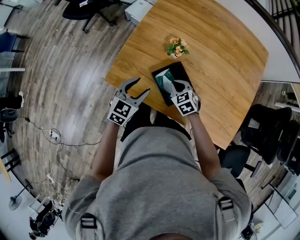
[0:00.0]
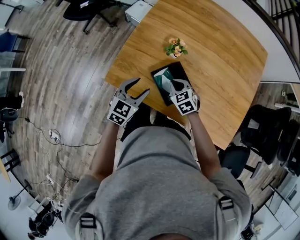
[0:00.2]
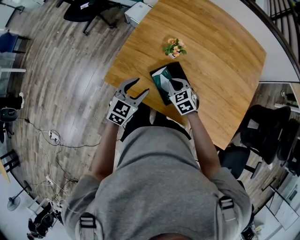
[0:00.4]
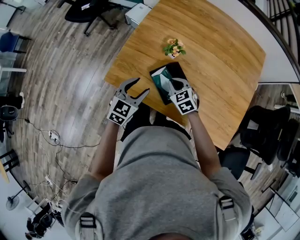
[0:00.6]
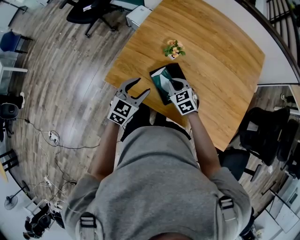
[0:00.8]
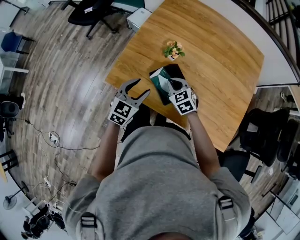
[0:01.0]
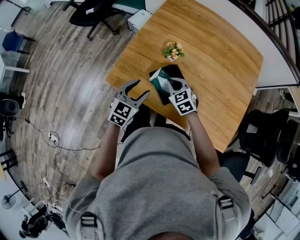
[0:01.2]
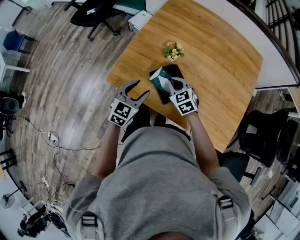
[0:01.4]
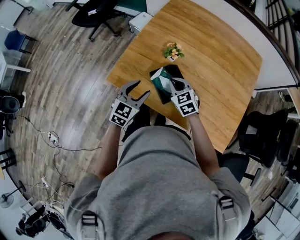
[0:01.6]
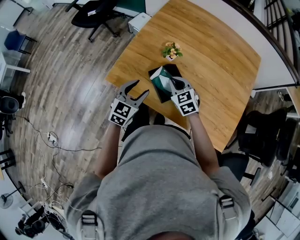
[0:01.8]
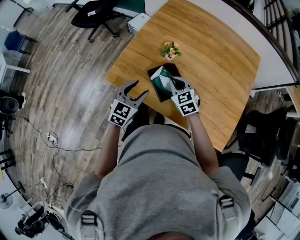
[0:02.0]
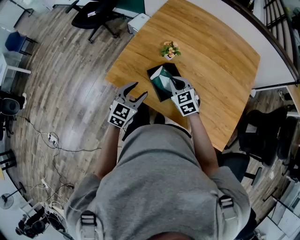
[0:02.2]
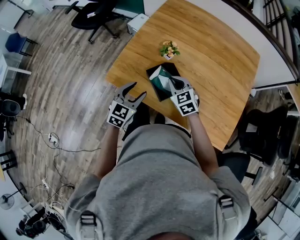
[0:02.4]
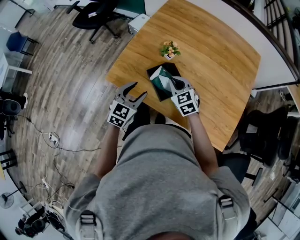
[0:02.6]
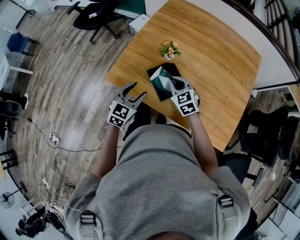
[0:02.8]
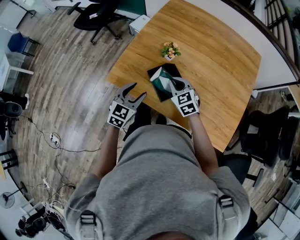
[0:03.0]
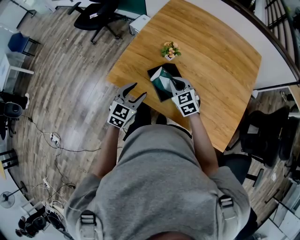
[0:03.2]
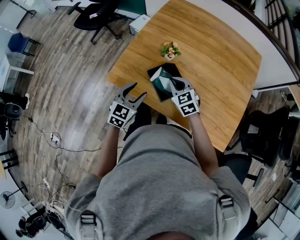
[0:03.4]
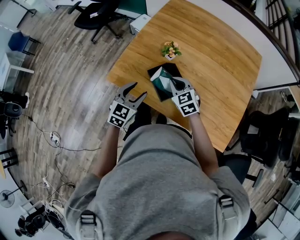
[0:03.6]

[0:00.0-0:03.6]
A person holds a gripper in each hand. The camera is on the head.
0:00.0 to 0:01.8: The right gripper is displaced upward by roughly 10 cm. The left gripper goes roughly 5 cm backward.
0:01.8 to 0:03.6: The grippers stay close to where they were, moving slightly.

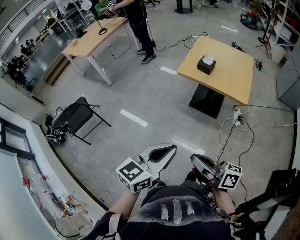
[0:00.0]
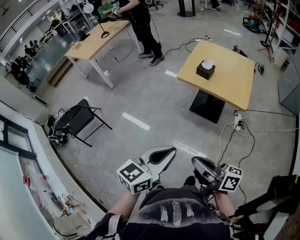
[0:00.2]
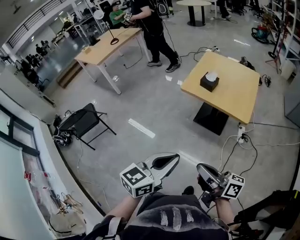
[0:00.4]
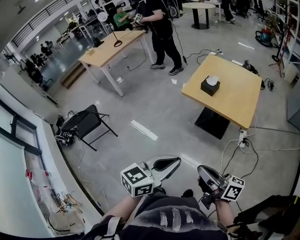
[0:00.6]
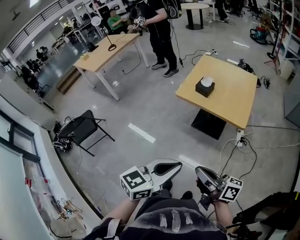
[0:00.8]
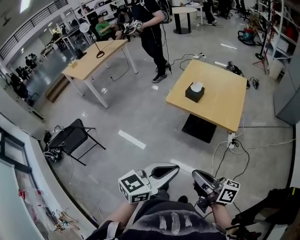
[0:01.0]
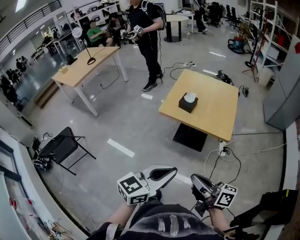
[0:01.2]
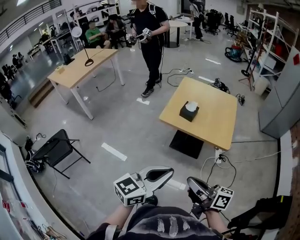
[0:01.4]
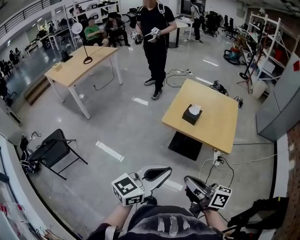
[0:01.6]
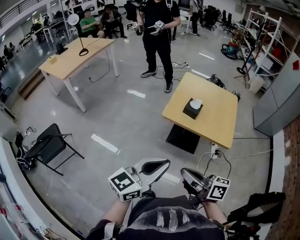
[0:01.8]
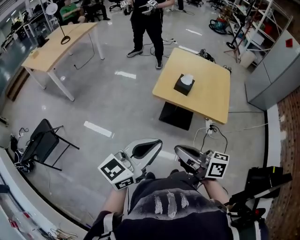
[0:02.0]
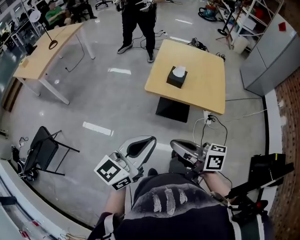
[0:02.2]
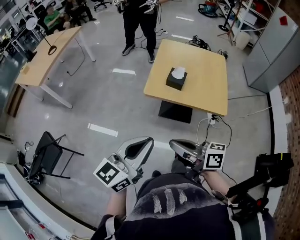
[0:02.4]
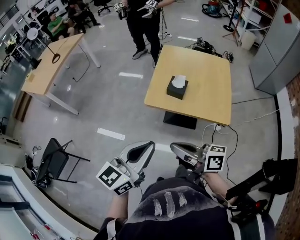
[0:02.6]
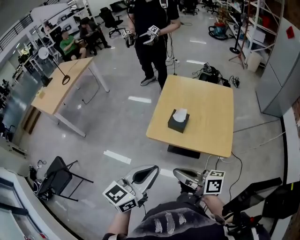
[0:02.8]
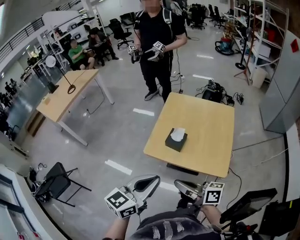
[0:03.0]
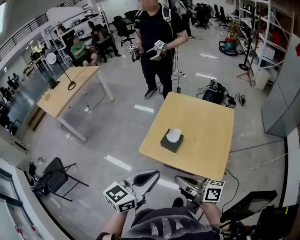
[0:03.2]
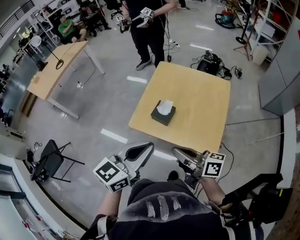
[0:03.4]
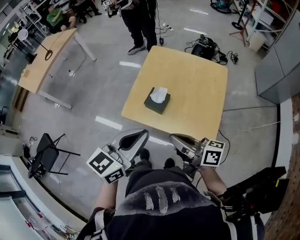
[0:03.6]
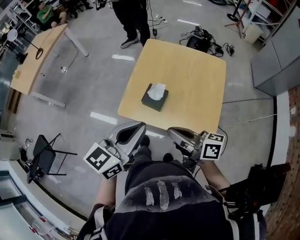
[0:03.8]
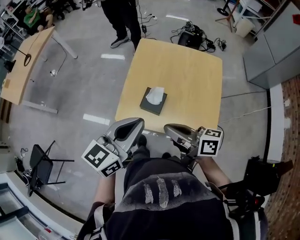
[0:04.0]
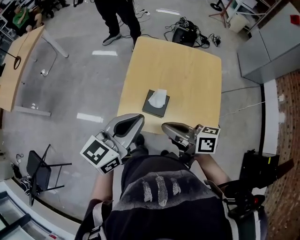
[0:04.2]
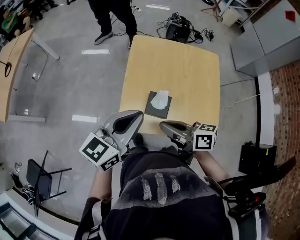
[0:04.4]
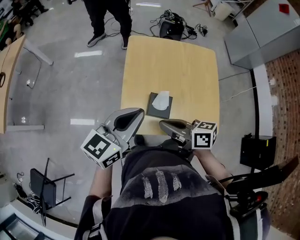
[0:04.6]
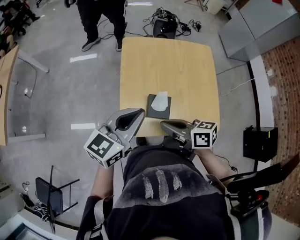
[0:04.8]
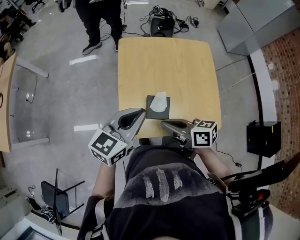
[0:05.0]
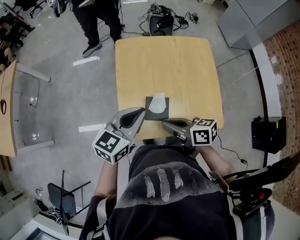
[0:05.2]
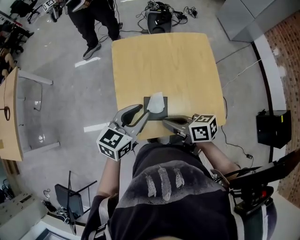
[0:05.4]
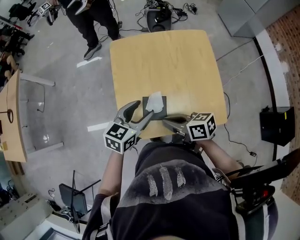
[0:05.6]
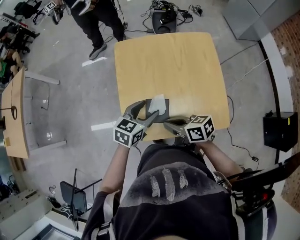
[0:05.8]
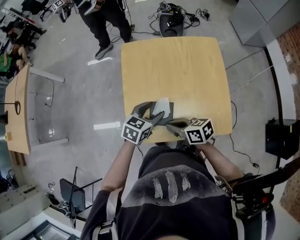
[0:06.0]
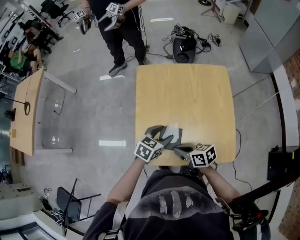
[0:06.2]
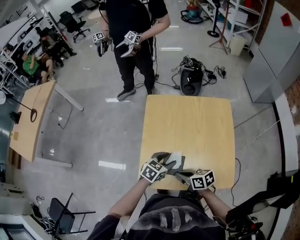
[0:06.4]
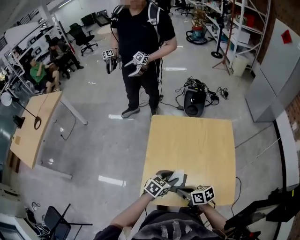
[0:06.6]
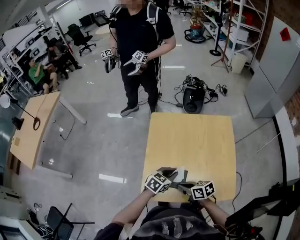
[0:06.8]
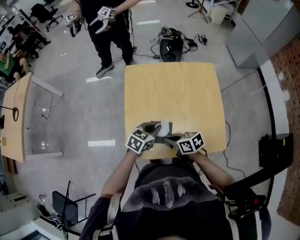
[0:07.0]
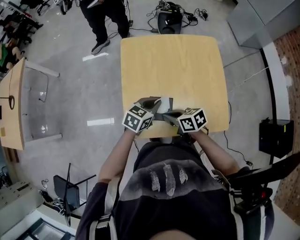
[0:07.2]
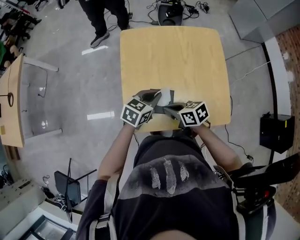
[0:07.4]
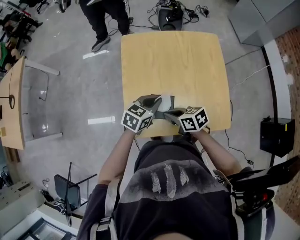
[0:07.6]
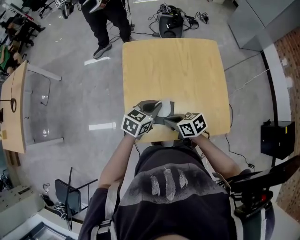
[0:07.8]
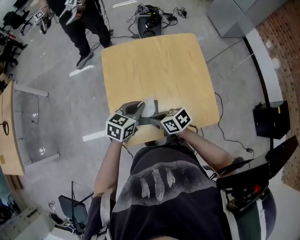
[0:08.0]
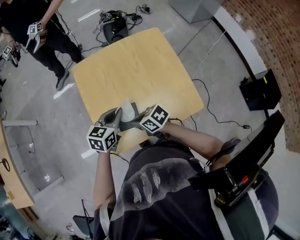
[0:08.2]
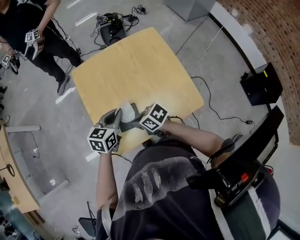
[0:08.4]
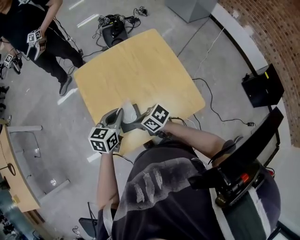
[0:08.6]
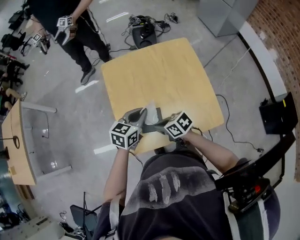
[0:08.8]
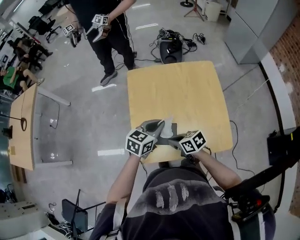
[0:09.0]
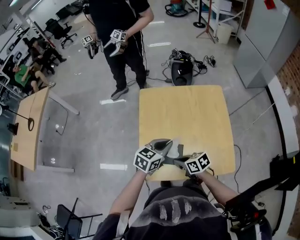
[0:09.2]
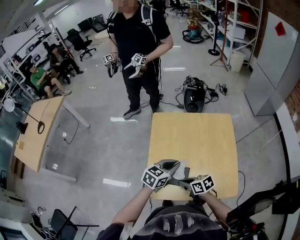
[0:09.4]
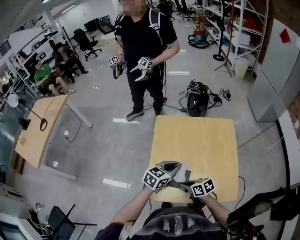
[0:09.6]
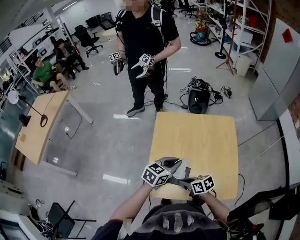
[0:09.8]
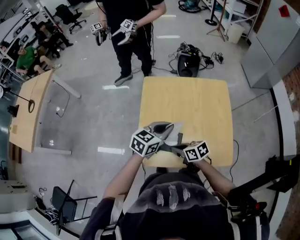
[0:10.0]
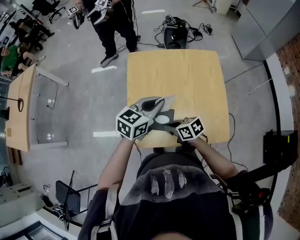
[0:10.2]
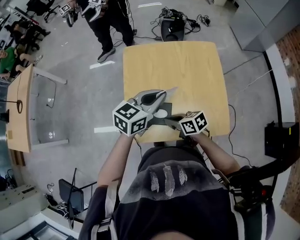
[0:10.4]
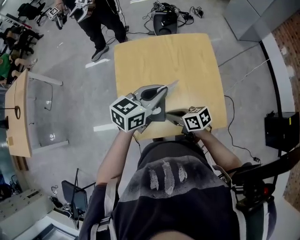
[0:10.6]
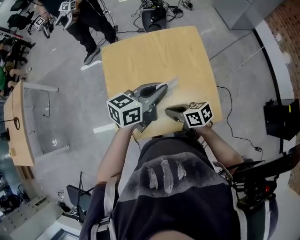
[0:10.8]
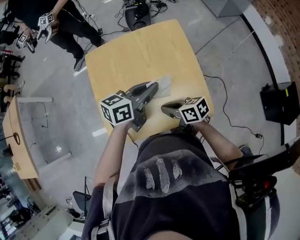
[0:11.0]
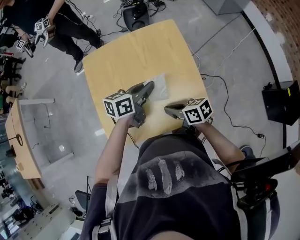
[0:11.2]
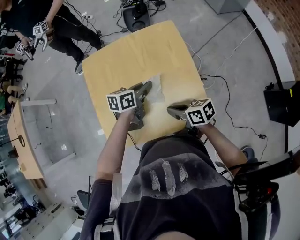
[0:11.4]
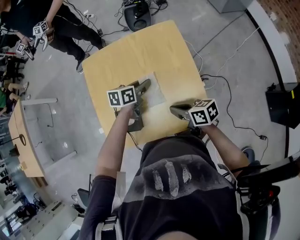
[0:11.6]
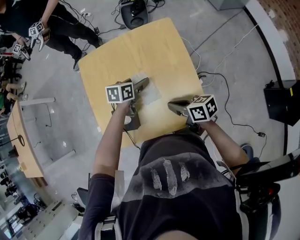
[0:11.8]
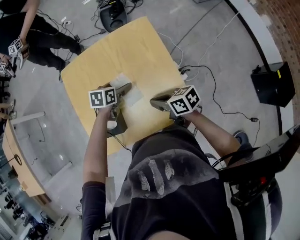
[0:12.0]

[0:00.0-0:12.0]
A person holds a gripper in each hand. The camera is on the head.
0:00.0 to 0:01.6: Both grippers travel together forward, some 15 cm.
0:01.6 to 0:03.0: Both grippers move forward and to the right, roughly 20 cm.
0:03.0 to 0:04.4: The grippers both shift forward by about 25 cm. The right gripper turns by roughly 20 degrees.
0:04.4 to 0:06.0: The left gripper is displaced downward, forward and to the right by roughly 25 cm, tilts its fingers roughly 30 degrees downward, and opens its fingers. Meanwhile the right gripper moves downward, approximately 15 cm.
0:06.0 to 0:07.6: The left gripper closes.
0:07.6 to 0:09.0: The left gripper goes about 5 cm upward.
0:09.0 to 0:10.4: The left gripper heads upward, covering approximately 10 cm.
0:10.4 to 0:12.0: The left gripper moves downward, some 20 cm, angles its fingers downward, by about 30 degrees, and opens up, while the right gripper moves roughly 20 cm.

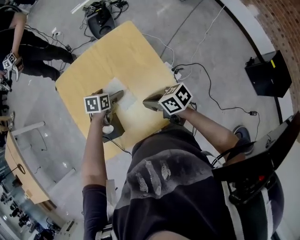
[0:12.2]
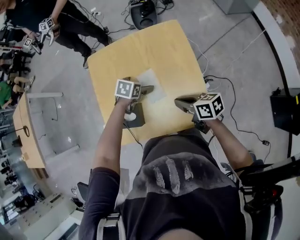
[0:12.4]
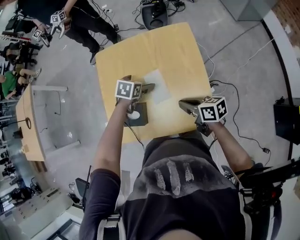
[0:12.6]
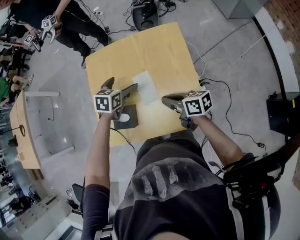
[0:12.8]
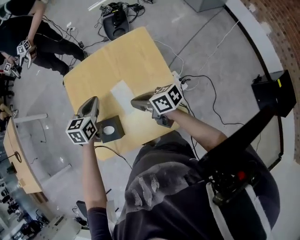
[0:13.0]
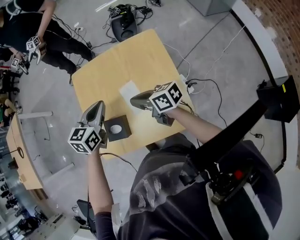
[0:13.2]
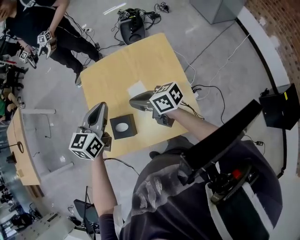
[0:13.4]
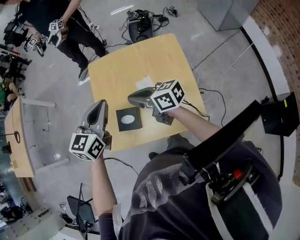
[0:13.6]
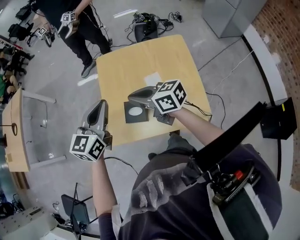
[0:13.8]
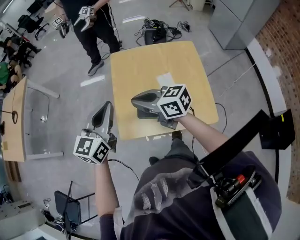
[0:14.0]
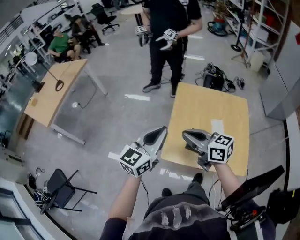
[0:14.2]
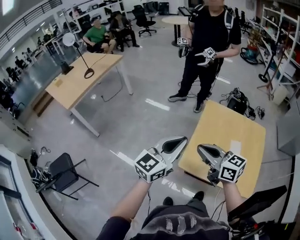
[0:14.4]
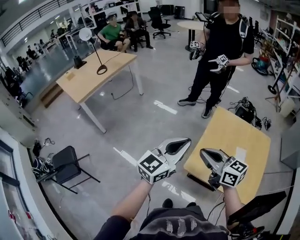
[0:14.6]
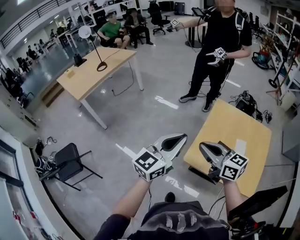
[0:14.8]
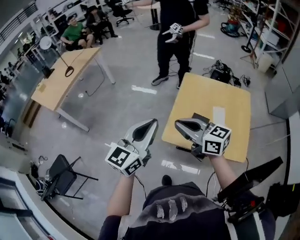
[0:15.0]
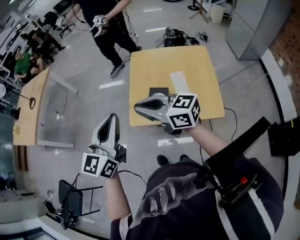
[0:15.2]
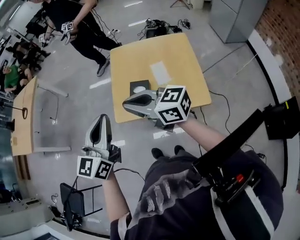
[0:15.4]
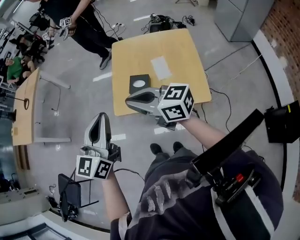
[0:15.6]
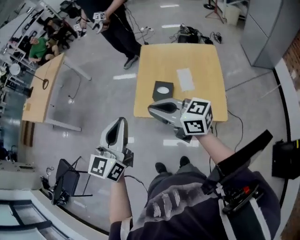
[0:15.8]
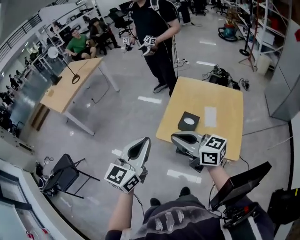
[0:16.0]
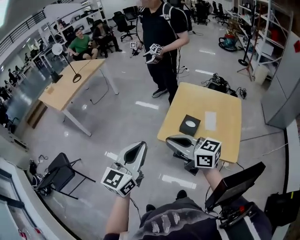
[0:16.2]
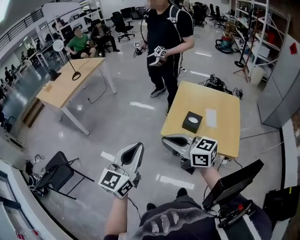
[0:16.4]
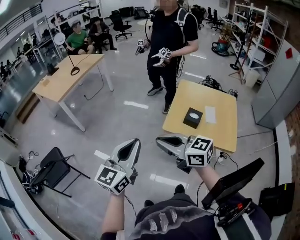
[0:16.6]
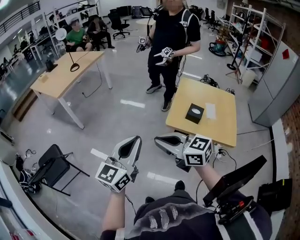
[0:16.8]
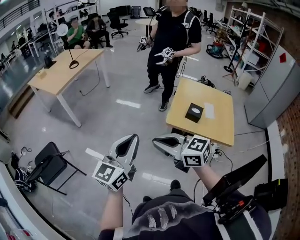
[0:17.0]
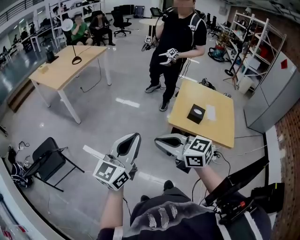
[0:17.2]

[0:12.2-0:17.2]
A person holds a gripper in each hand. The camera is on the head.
0:12.2 to 0:13.8: The right gripper is displaced to the left and upward by some 25 cm, and turns by roughly 30 degrees. The left gripper shifts approximately 35 cm upward and to the left, points its fingers roughly 50 degrees further upward, and closes.
0:13.8 to 0:15.6: The right gripper travels backward, upward and to the left by approximately 25 cm, while the left gripper goes forward and backward, roughly 20 cm each way, reversing 2 times.
0:15.6 to 0:17.2: The grippers both shift to the left by roughly 30 cm. The right gripper swivels roughly 20 degrees.

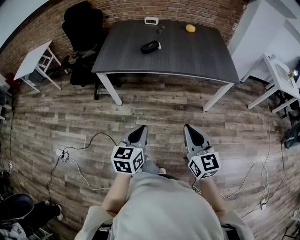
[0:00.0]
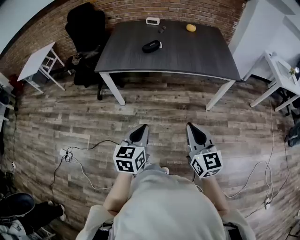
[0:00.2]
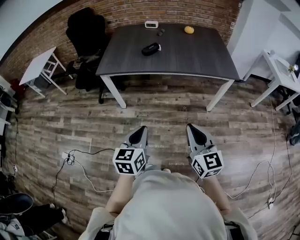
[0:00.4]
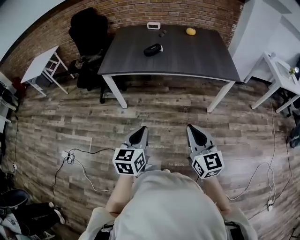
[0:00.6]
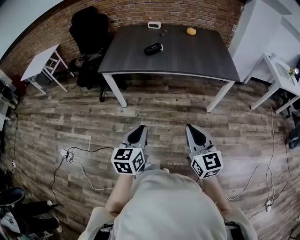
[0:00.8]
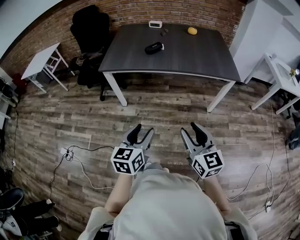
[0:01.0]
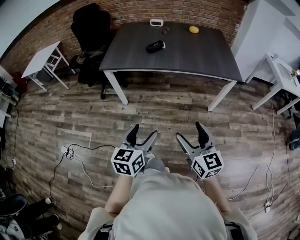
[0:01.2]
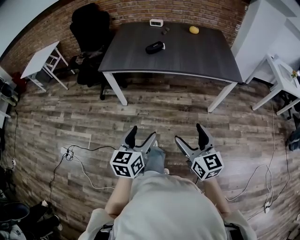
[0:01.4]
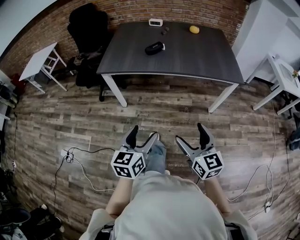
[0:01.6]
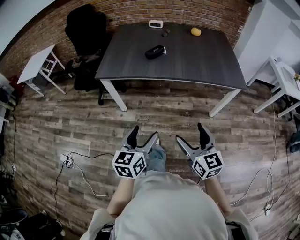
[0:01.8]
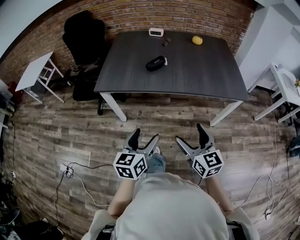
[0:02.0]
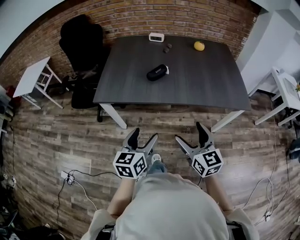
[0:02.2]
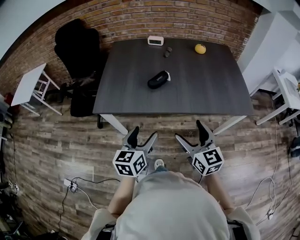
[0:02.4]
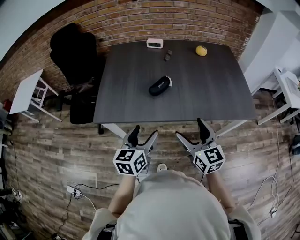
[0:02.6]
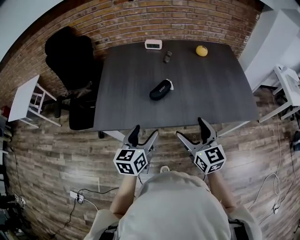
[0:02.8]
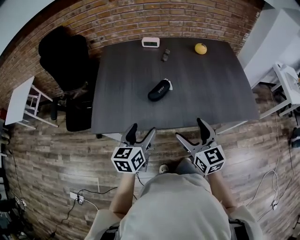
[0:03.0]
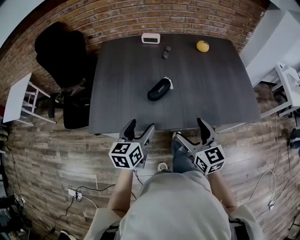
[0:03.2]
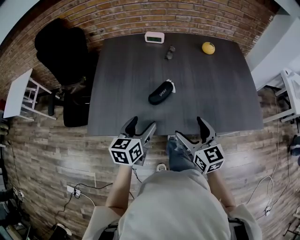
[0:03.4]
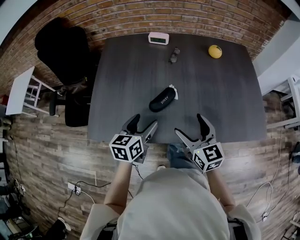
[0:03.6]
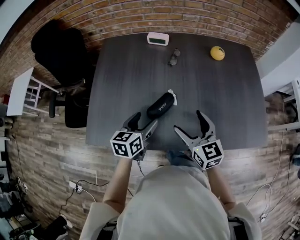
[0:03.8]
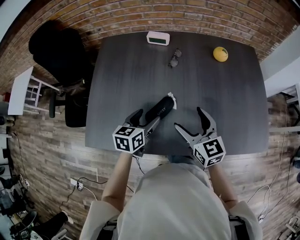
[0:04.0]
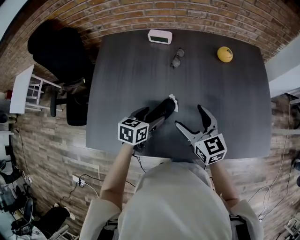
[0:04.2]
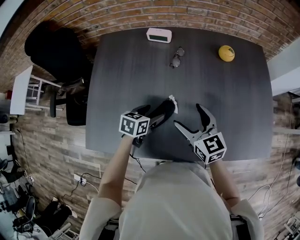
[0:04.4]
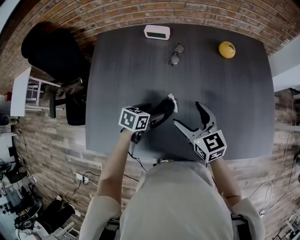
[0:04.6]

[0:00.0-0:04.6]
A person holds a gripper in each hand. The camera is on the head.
0:00.0 to 0:01.6: The left gripper opens up. The right gripper opens its fingers.
0:01.6 to 0:03.0: Both grippers are carried forward, approximately 40 cm.
0:03.0 to 0:04.6: The left gripper heads forward and downward, covering approximately 30 cm, and turns by roughly 40 degrees. Meanwhile the right gripper travels forward by some 30 cm.
